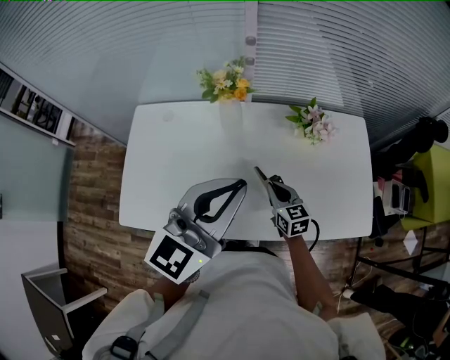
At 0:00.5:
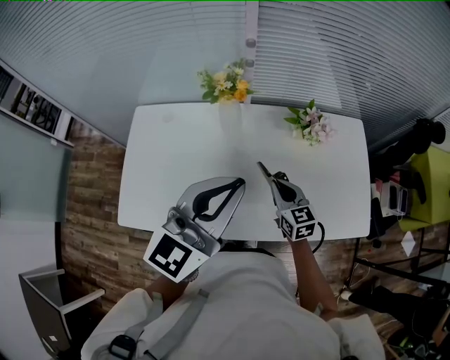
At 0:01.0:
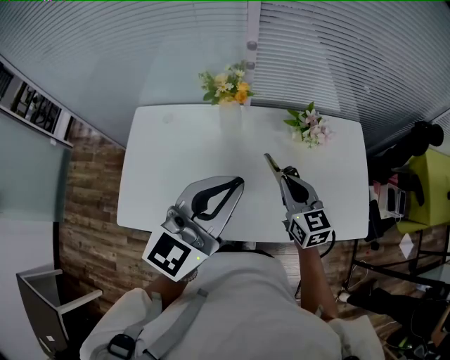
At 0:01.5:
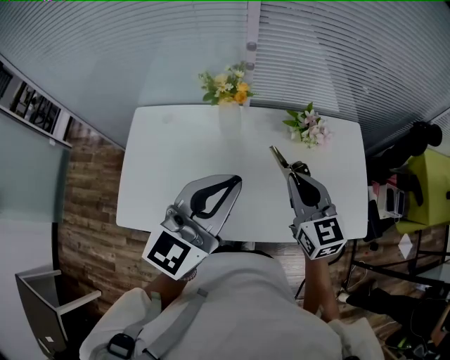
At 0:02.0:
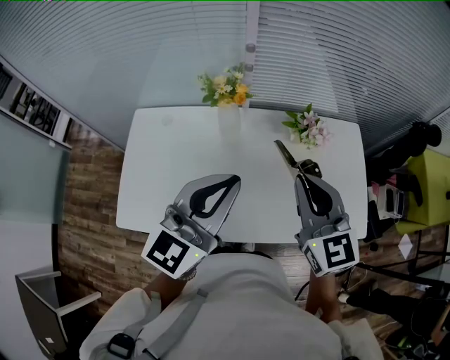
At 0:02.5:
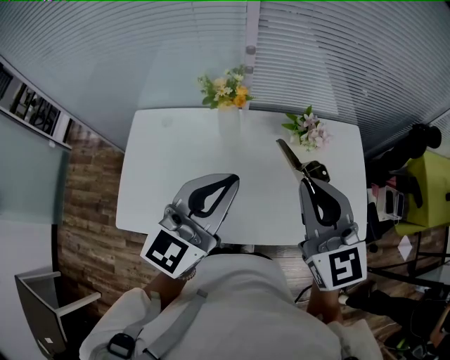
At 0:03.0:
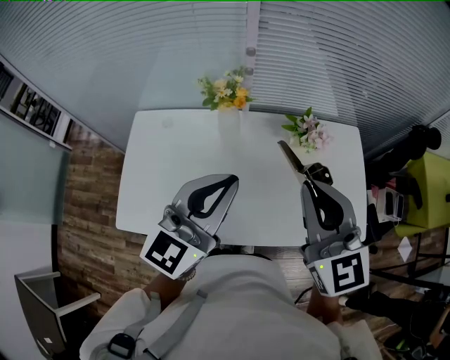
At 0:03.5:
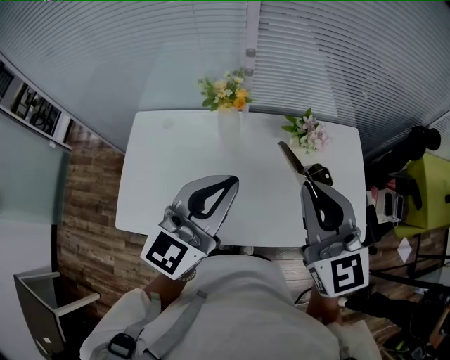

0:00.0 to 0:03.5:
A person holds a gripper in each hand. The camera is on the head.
0:00.0 to 0:02.0: The right gripper moves upward, some 30 cm, and turns by some 30 degrees.
0:02.0 to 0:03.5: The right gripper moves upward, approximately 5 cm.

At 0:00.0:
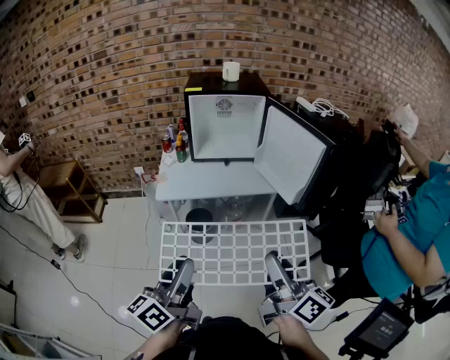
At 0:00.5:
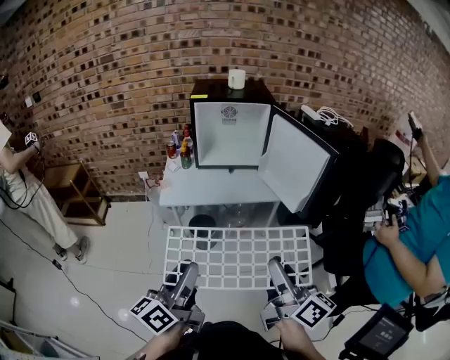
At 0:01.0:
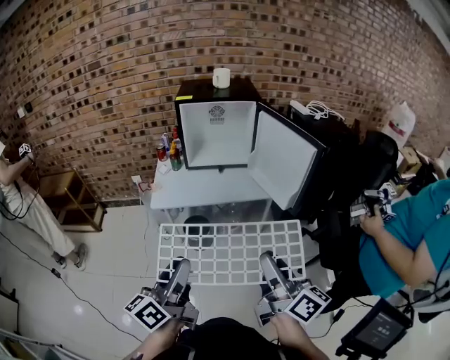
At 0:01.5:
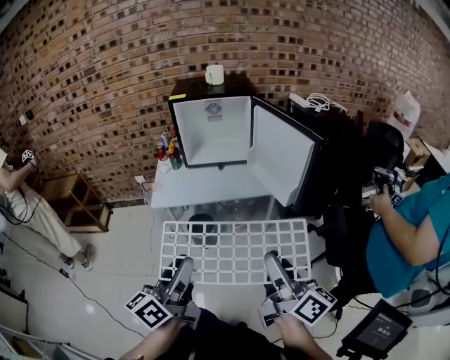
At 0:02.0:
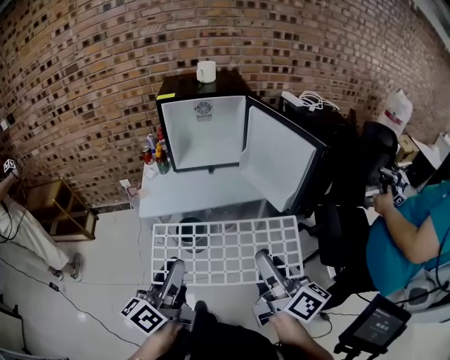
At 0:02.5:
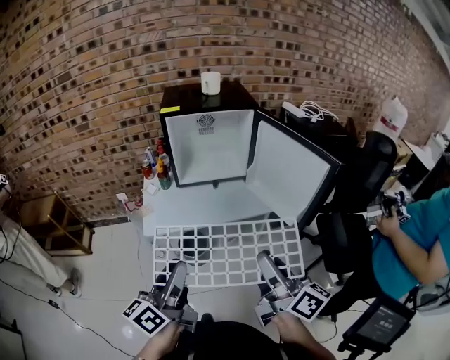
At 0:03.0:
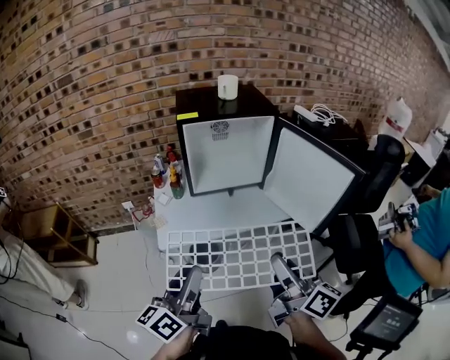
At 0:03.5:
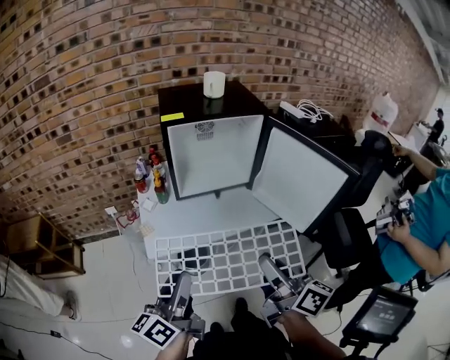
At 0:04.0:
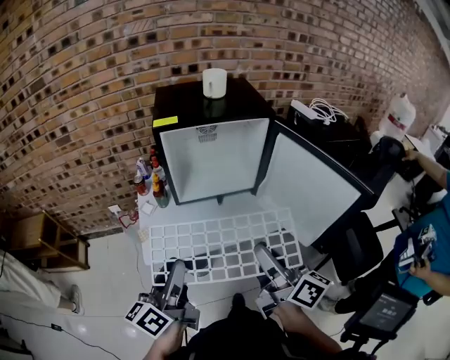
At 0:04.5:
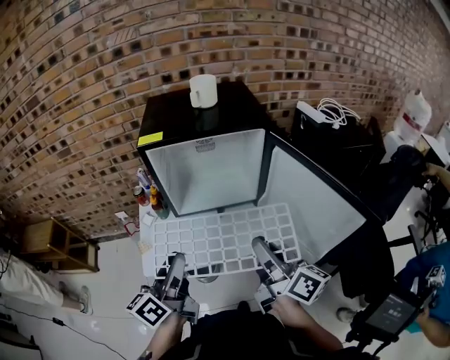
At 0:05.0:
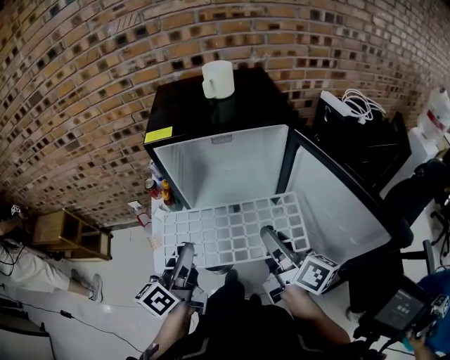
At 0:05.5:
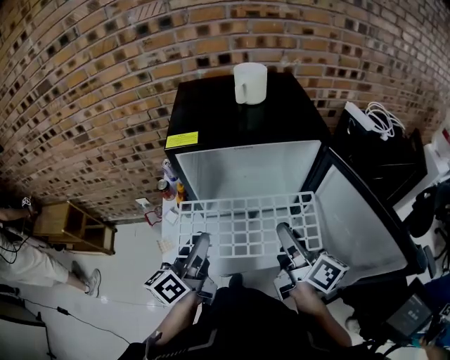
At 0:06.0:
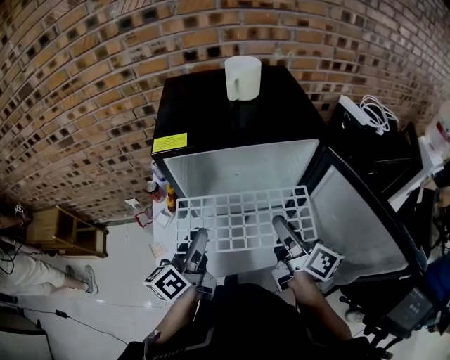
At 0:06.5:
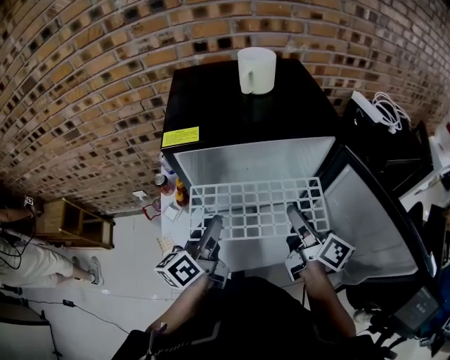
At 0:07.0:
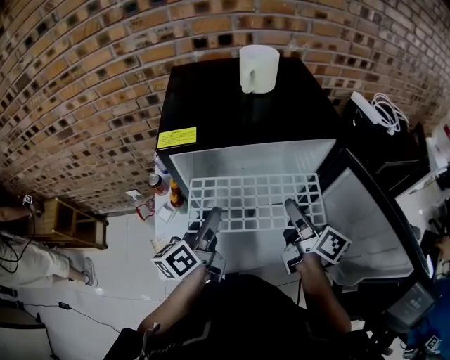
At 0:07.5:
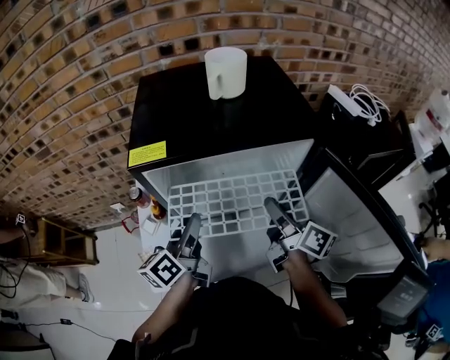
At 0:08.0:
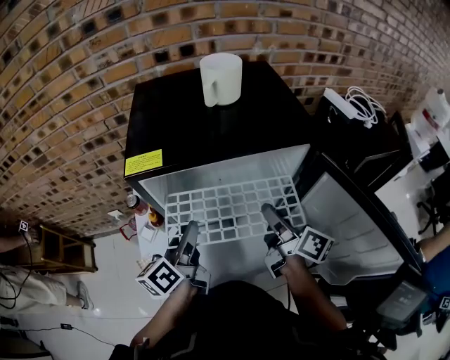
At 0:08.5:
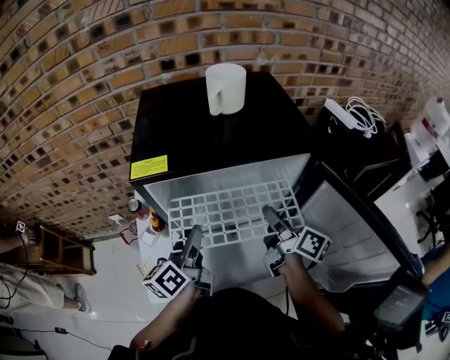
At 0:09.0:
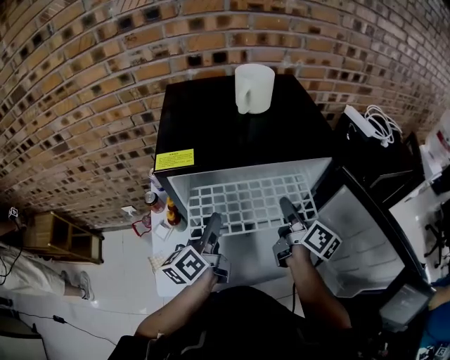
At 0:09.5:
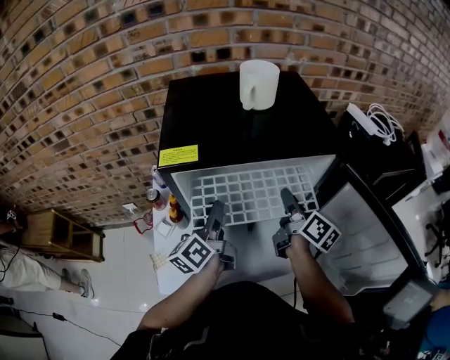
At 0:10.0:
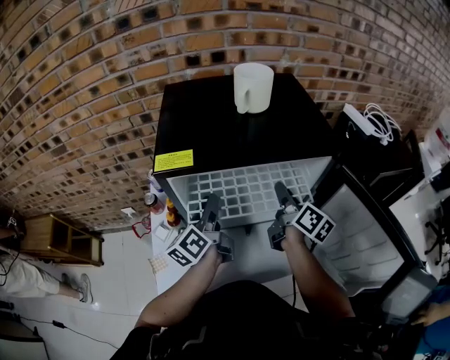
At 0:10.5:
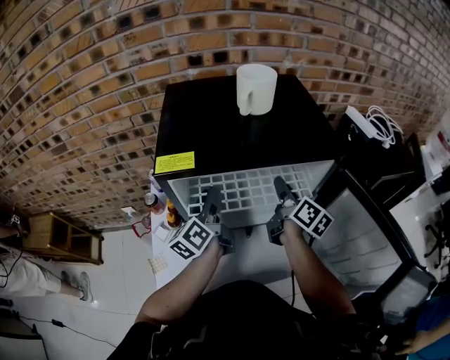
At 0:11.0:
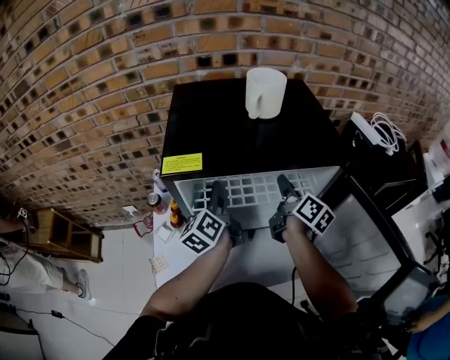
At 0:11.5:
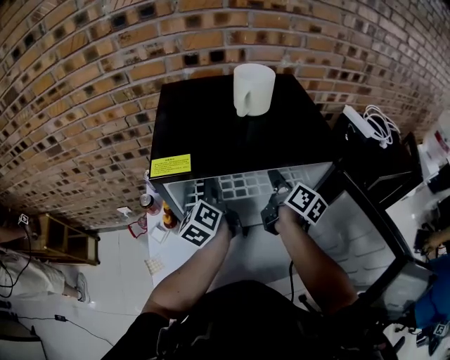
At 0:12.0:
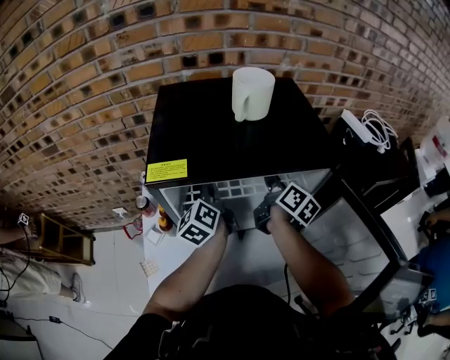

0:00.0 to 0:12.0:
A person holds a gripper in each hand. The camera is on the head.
0:00.0 to 0:02.0: Both grippers move forward, approximately 10 cm.
0:02.0 to 0:04.0: Both grippers travel together forward and to the left, some 25 cm.
0:04.0 to 0:06.0: Both grippers move forward, some 25 cm.
0:06.0 to 0:08.0: The grippers both shift forward by about 5 cm.
0:08.0 to 0:10.0: The grippers both shift forward by approximately 10 cm.
0:10.0 to 0:12.0: The grippers both shift forward by some 10 cm. The left gripper changes its angle by roughly 20 degrees.

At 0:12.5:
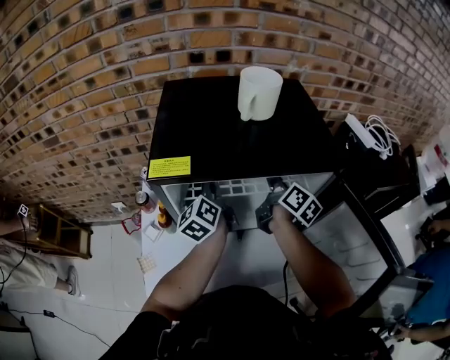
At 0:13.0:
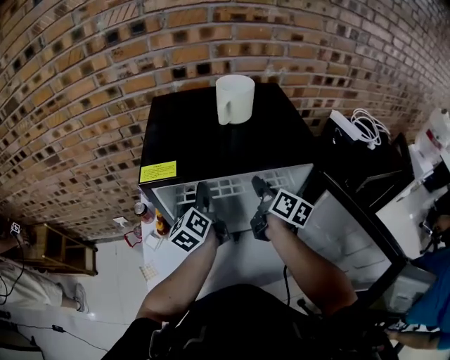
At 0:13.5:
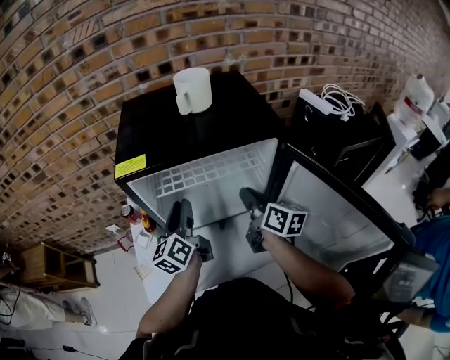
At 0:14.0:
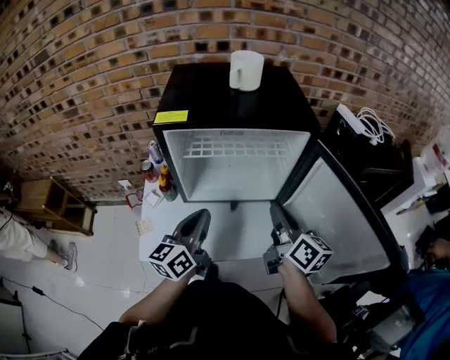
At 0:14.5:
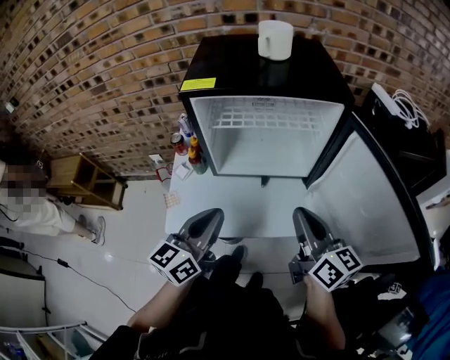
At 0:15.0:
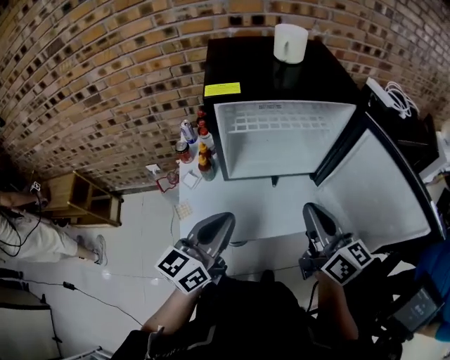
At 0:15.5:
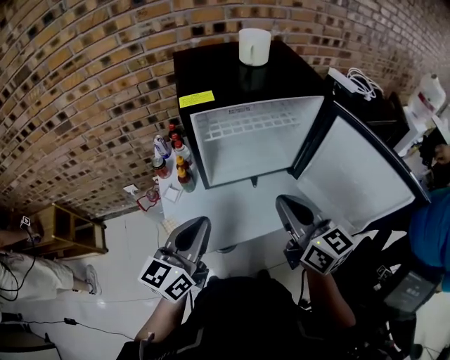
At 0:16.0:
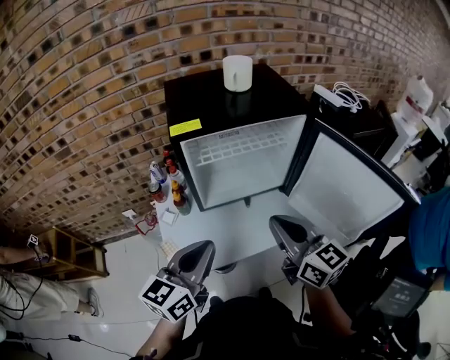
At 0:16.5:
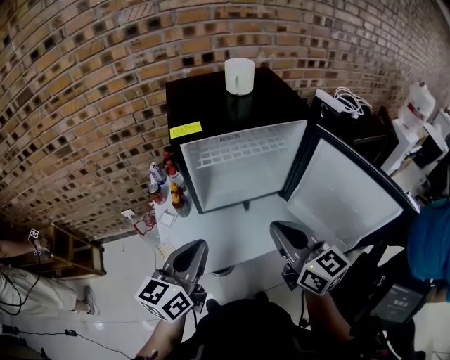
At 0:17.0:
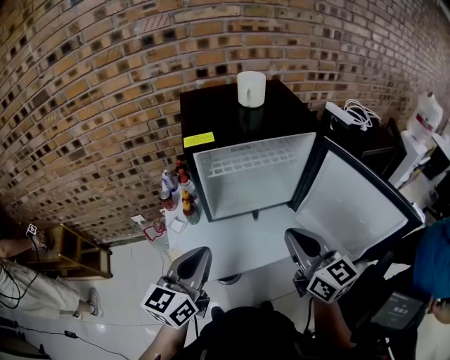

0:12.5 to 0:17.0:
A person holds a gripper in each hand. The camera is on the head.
0:12.5 to 0:14.5: Both grippers travel together backward, roughly 35 cm. The left gripper swivels some 40 degrees, and closes its fingers. The right gripper rotates some 30 degrees, and closes up.
0:14.5 to 0:17.0: The two grippers go about 10 cm to the left and upward. The right gripper turns by some 20 degrees.

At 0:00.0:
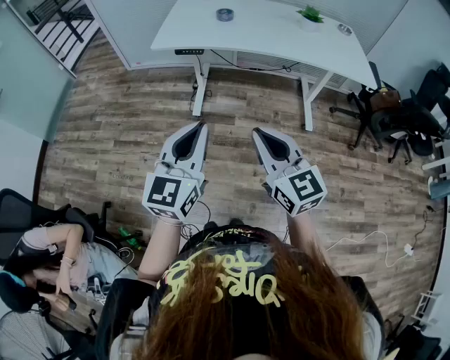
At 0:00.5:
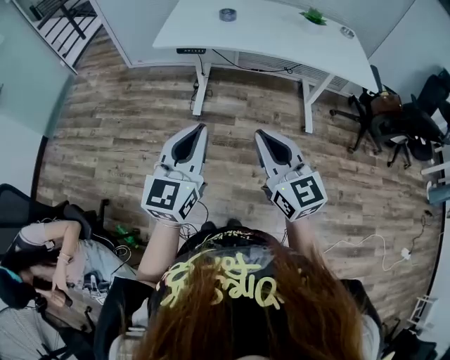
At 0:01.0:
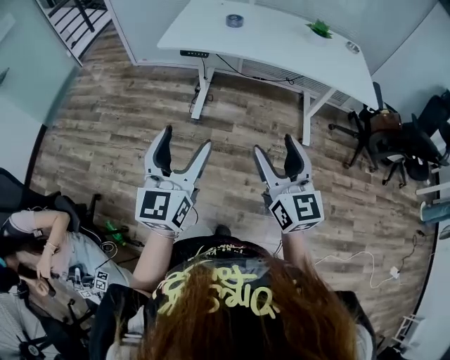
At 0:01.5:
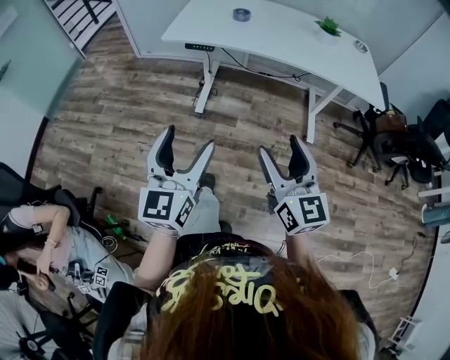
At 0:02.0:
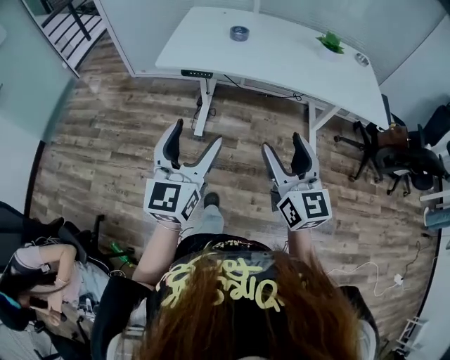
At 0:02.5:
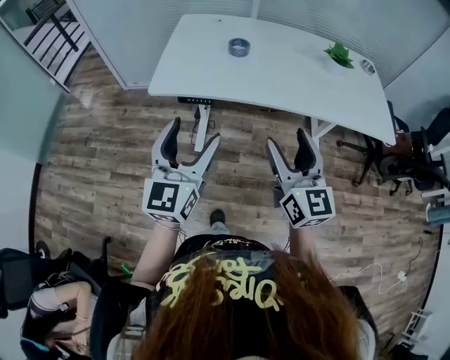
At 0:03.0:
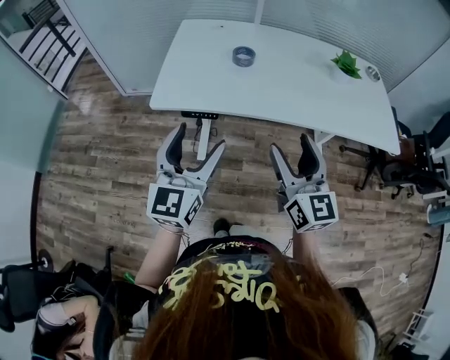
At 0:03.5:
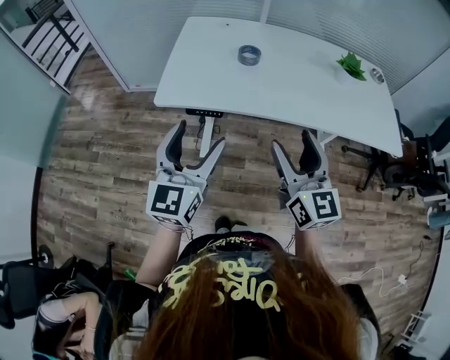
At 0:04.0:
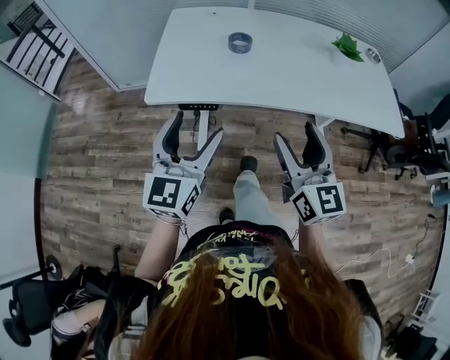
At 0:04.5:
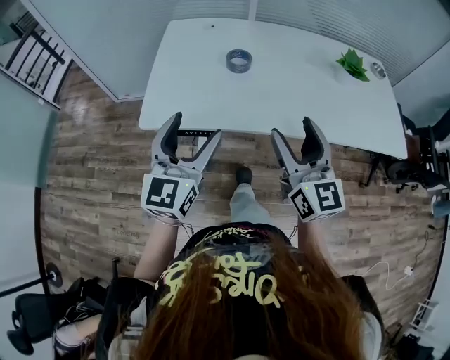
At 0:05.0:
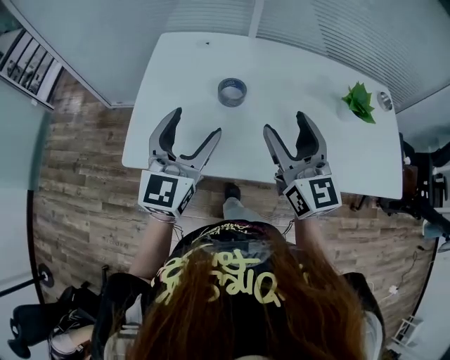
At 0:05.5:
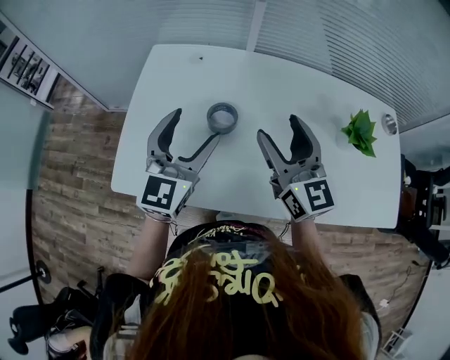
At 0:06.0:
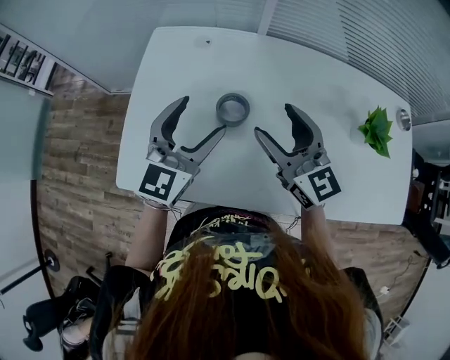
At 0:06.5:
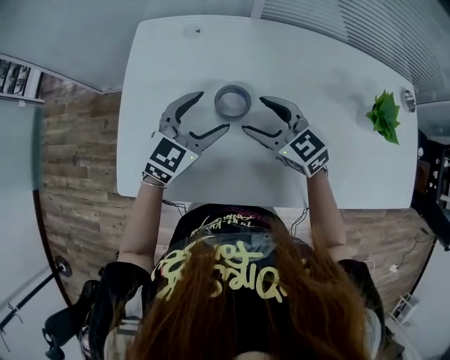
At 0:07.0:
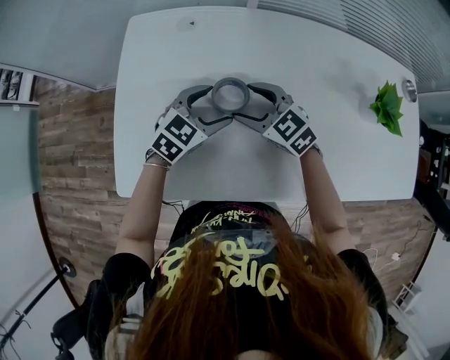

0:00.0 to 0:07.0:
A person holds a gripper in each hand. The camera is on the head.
0:00.0 to 0:02.0: The two grippers go approximately 15 cm forward. The right gripper opens its fingers, while the left gripper opens.
0:02.0 to 0:03.5: The grippers both shift forward by roughly 20 cm.
0:03.5 to 0:05.0: The grippers both shift forward by roughly 25 cm.
0:05.0 to 0:07.0: Both grippers move downward and forward, some 25 cm. The right gripper points its fingers about 40 degrees further downward, while the left gripper tilts its fingers roughly 40 degrees downward.
